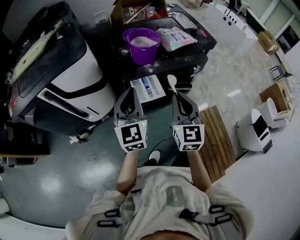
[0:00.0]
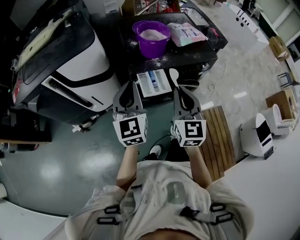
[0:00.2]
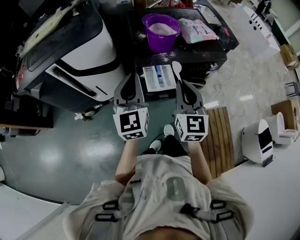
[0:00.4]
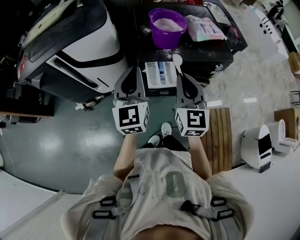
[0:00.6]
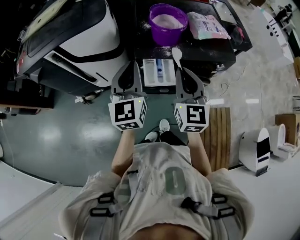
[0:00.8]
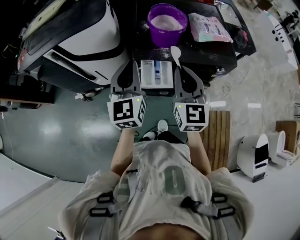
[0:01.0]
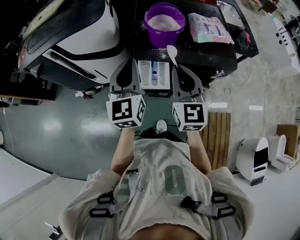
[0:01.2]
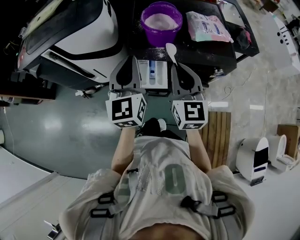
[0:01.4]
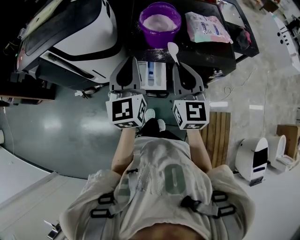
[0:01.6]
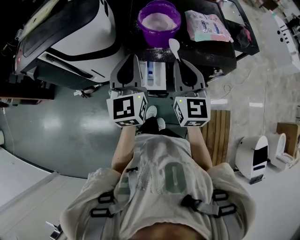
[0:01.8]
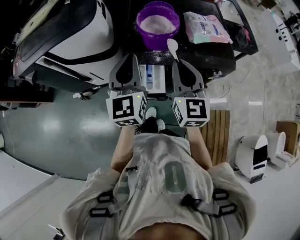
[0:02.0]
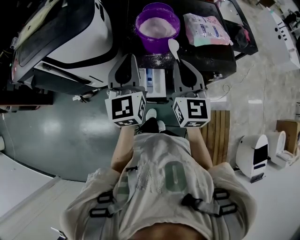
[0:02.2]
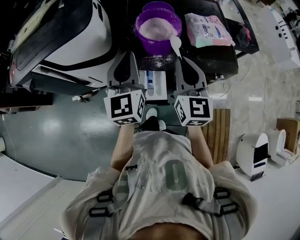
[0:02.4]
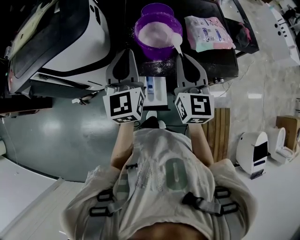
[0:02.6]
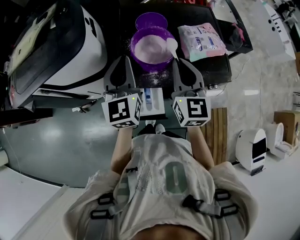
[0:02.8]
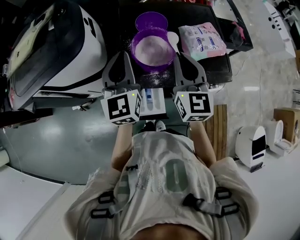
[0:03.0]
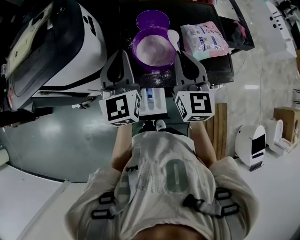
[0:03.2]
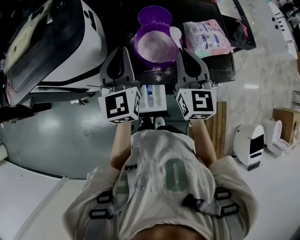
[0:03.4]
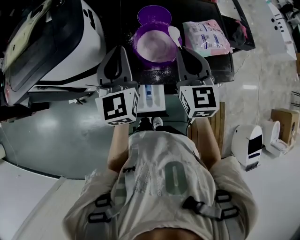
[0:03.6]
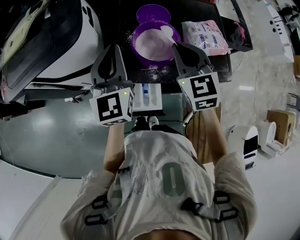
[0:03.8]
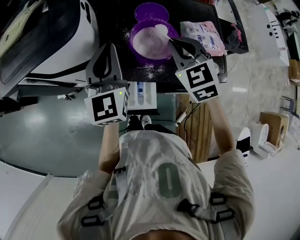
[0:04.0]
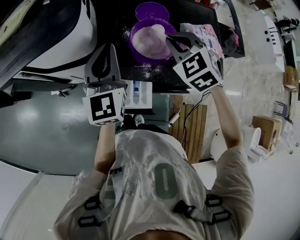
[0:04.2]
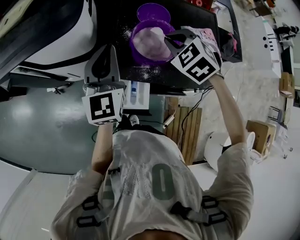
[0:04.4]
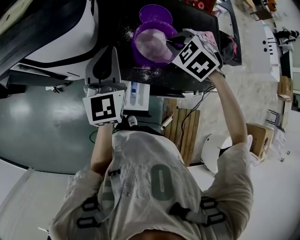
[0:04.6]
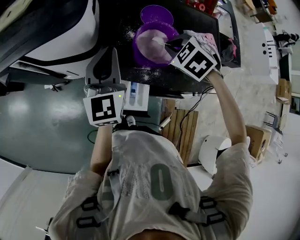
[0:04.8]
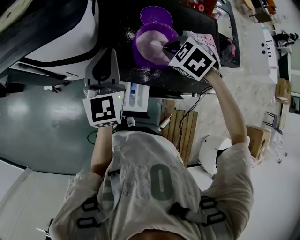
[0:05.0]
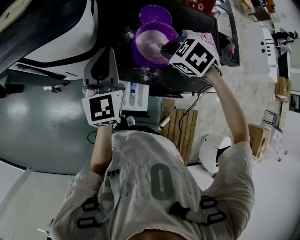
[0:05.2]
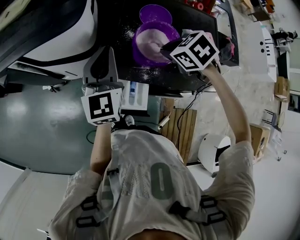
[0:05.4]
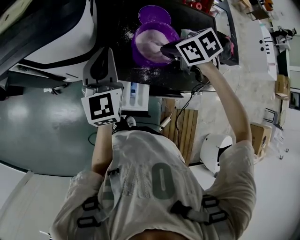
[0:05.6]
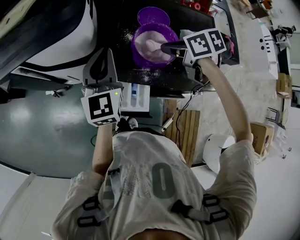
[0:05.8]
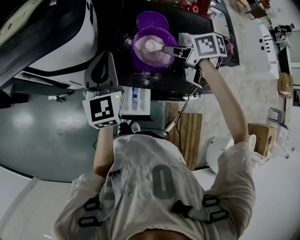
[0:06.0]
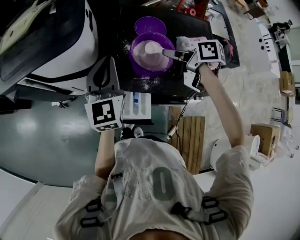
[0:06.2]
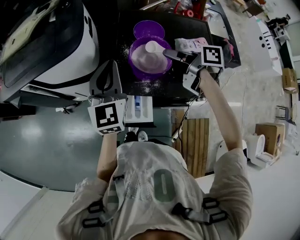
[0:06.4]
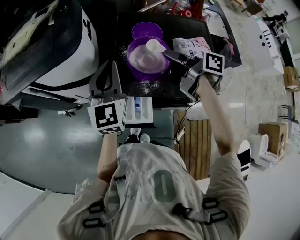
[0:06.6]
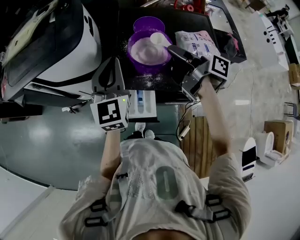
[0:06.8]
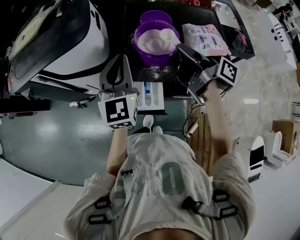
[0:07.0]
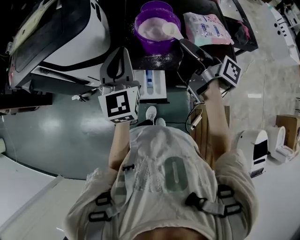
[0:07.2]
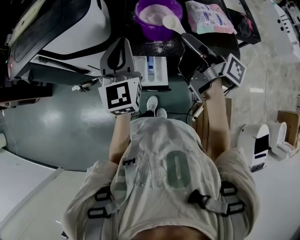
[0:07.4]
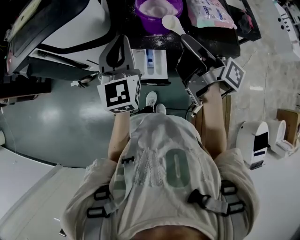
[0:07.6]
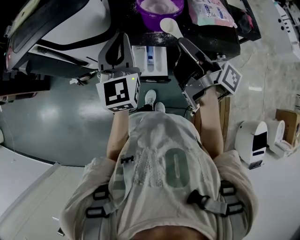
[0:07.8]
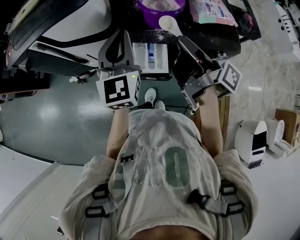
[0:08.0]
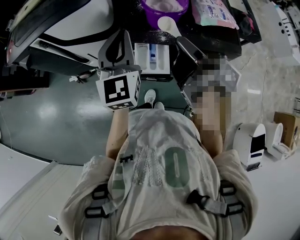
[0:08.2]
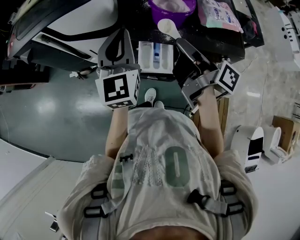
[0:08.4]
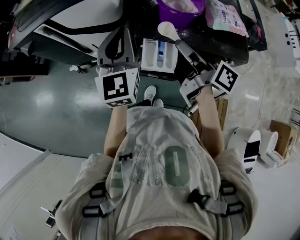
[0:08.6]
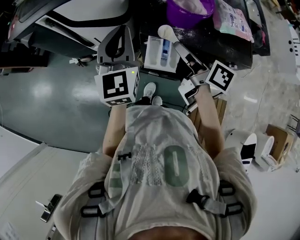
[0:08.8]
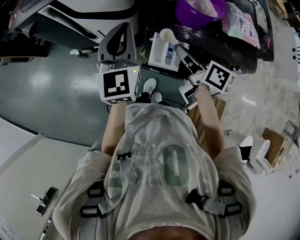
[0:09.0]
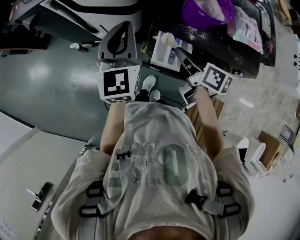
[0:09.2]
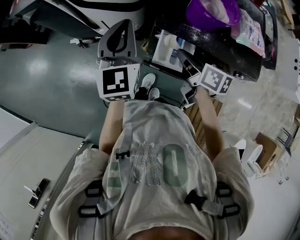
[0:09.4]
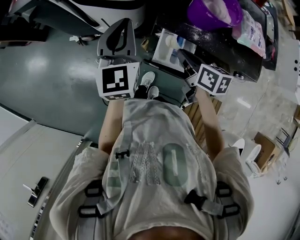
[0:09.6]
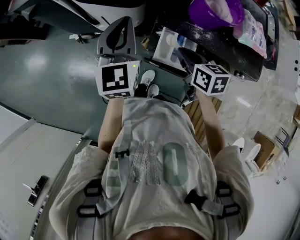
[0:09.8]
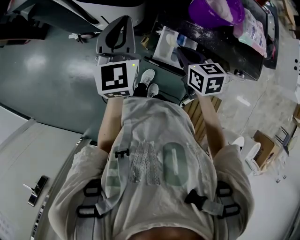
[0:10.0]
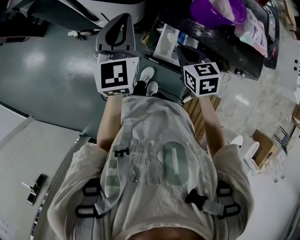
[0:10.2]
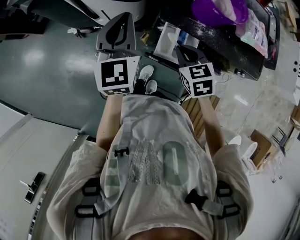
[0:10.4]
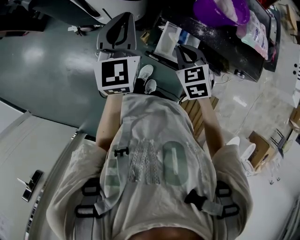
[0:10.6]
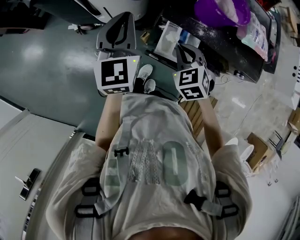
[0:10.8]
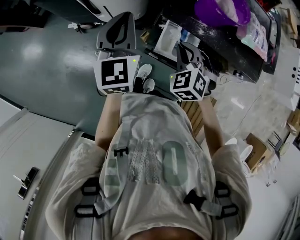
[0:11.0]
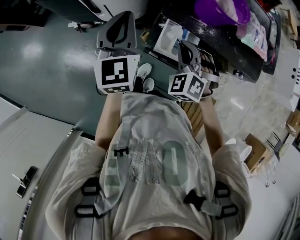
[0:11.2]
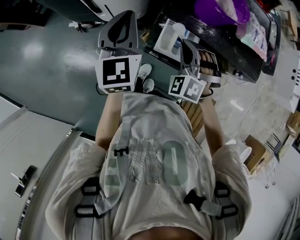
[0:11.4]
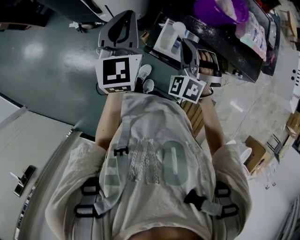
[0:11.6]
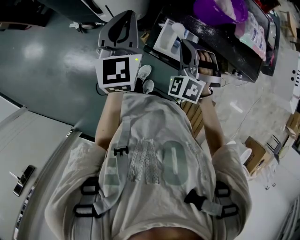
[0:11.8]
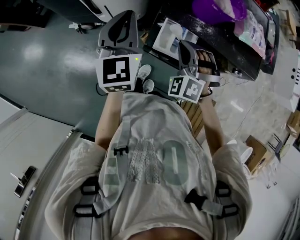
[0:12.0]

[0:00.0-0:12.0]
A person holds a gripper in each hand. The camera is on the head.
0.0 to 1.6 s: The grippers both shift forward and to the right by roughly 10 cm. The right gripper rotates some 20 degrees.
1.6 to 3.0 s: The grippers both shift forward by roughly 15 cm.
3.0 to 4.4 s: The right gripper heads downward and forward, covering about 10 cm, and tips its fingers downward by about 50 degrees.
4.4 to 6.0 s: The right gripper twists about 70 degrees clockwise, seen from behind.
6.0 to 7.6 s: Both grippers travel together backward, roughly 15 cm. The right gripper points its fingers some 50 degrees further upward.
7.6 to 9.0 s: The left gripper shifts about 10 cm to the left; the right gripper travels downward and to the left by roughly 15 cm, and changes its angle by some 40 degrees.
9.0 to 10.4 s: The left gripper shifts by some 5 cm; the right gripper goes roughly 10 cm downward, and rolls counterclockwise, seen from behind, by roughly 60 degrees.
10.4 to 12.0 s: The right gripper rotates around the line of its fingers by approximately 60 degrees, counterclockwise from behind.

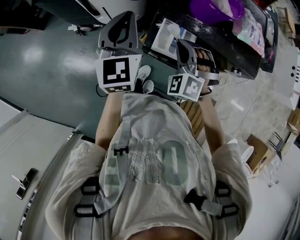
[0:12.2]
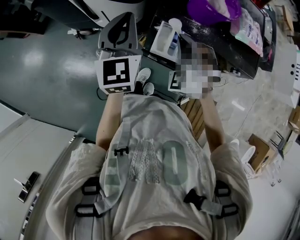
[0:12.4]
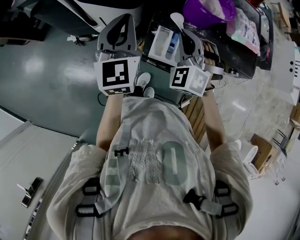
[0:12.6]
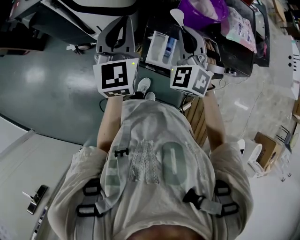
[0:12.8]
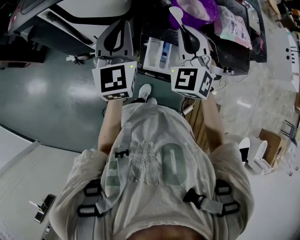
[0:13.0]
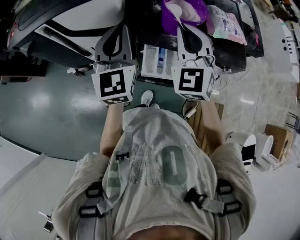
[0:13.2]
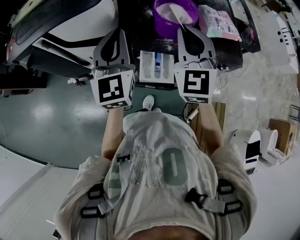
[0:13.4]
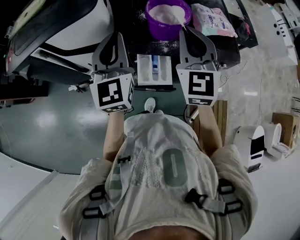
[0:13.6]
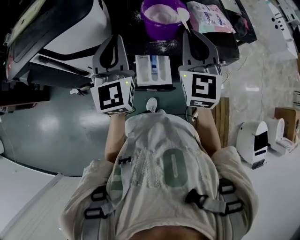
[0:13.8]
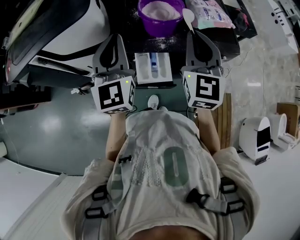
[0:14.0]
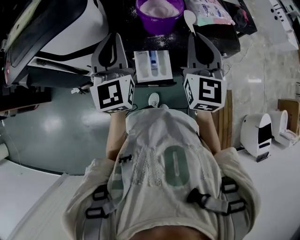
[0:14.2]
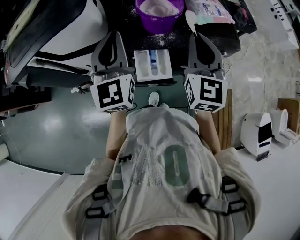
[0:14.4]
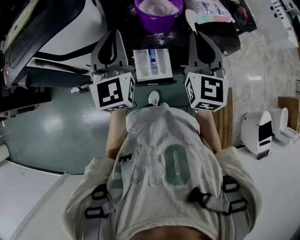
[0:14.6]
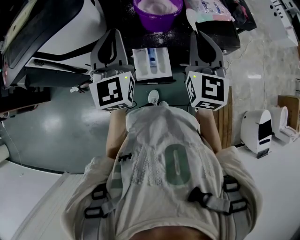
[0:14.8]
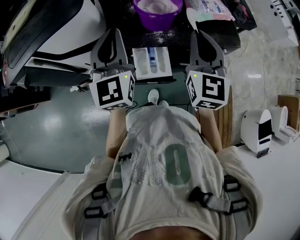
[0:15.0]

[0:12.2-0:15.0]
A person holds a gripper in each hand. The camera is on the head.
12.2 to 13.6 s: The left gripper heads upward and to the right, covering some 10 cm. Meanwhile the right gripper is displaced upward and to the right by roughly 25 cm, and rotates around the line of its fingers by some 50 degrees, clockwise from behind.
13.6 to 15.0 s: The right gripper travels to the right by some 5 cm.

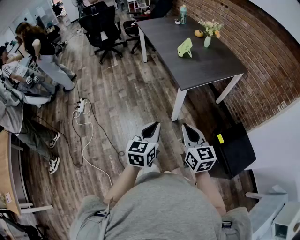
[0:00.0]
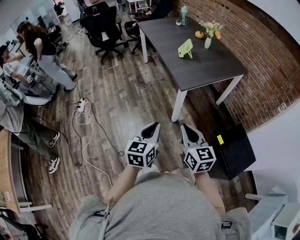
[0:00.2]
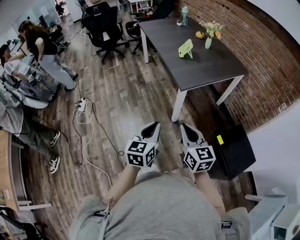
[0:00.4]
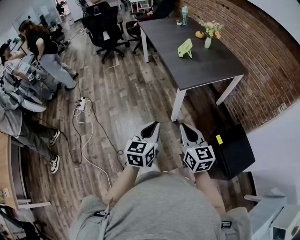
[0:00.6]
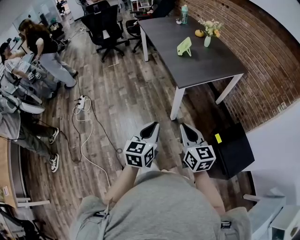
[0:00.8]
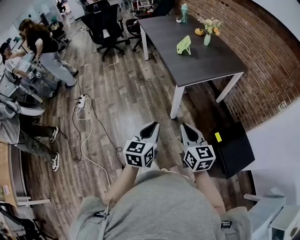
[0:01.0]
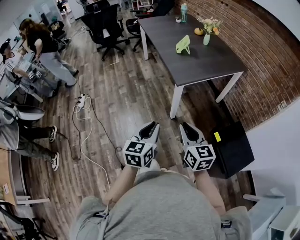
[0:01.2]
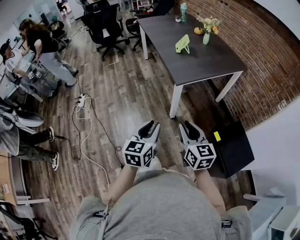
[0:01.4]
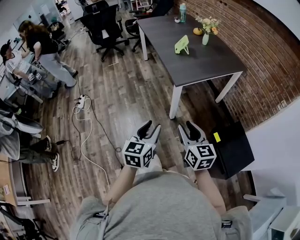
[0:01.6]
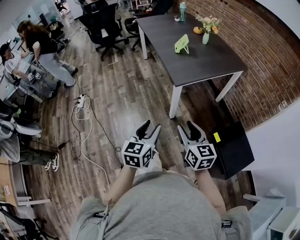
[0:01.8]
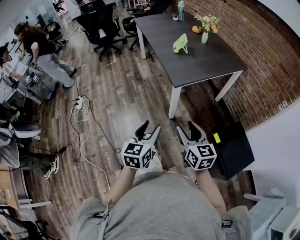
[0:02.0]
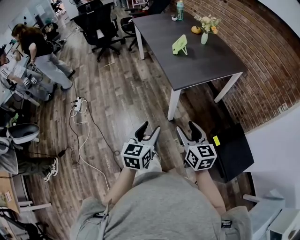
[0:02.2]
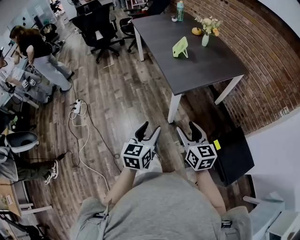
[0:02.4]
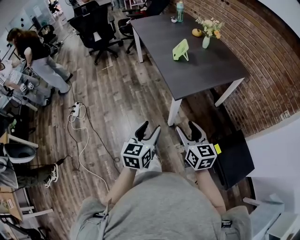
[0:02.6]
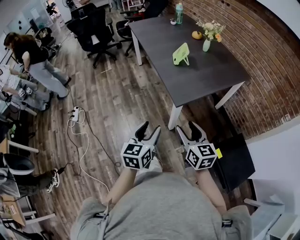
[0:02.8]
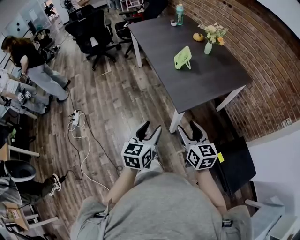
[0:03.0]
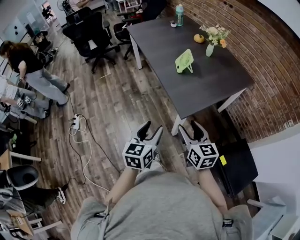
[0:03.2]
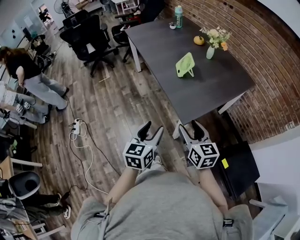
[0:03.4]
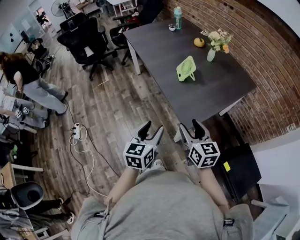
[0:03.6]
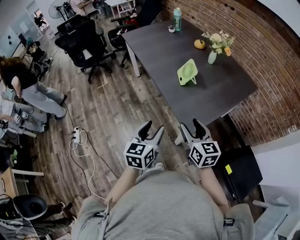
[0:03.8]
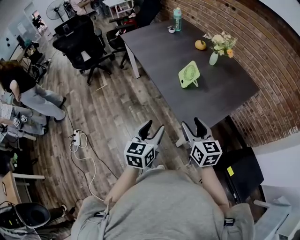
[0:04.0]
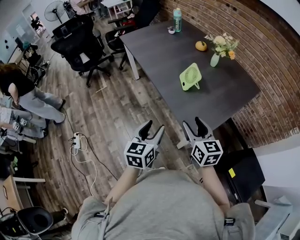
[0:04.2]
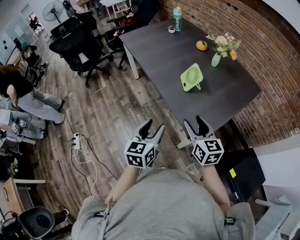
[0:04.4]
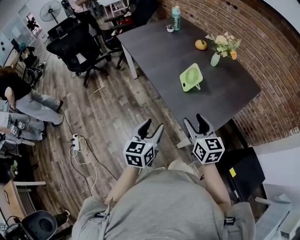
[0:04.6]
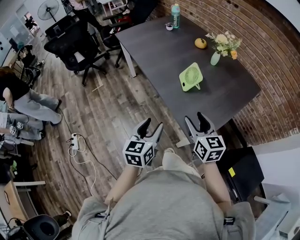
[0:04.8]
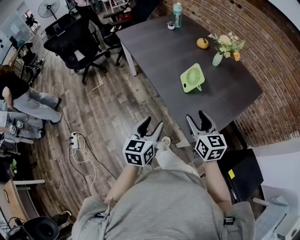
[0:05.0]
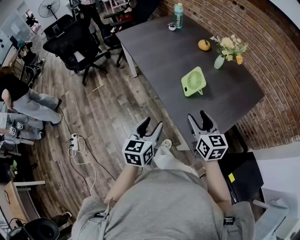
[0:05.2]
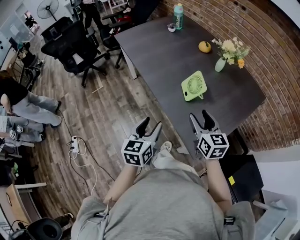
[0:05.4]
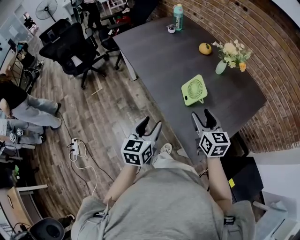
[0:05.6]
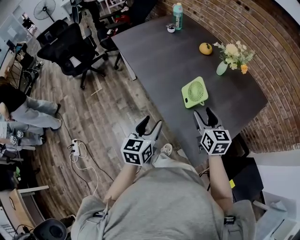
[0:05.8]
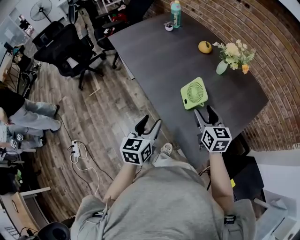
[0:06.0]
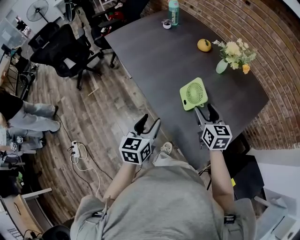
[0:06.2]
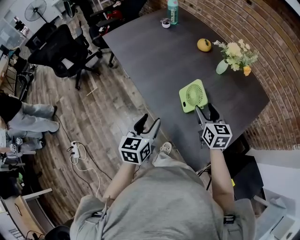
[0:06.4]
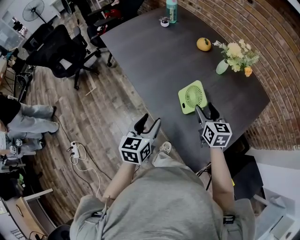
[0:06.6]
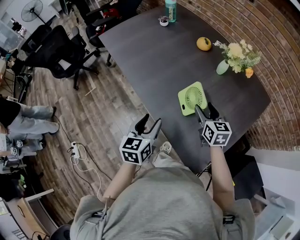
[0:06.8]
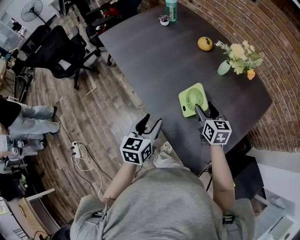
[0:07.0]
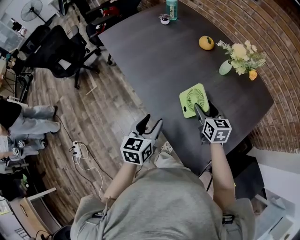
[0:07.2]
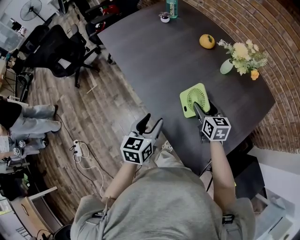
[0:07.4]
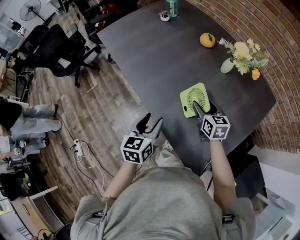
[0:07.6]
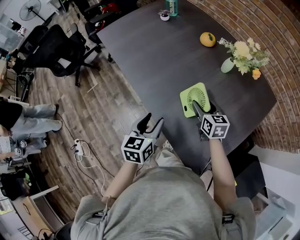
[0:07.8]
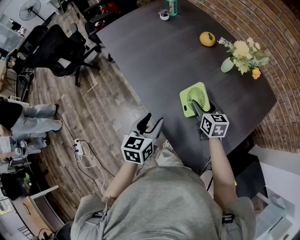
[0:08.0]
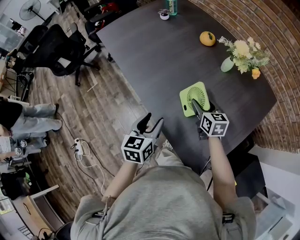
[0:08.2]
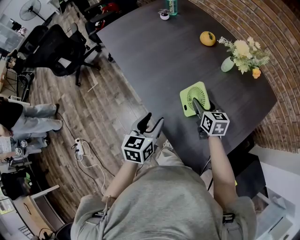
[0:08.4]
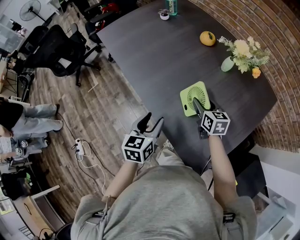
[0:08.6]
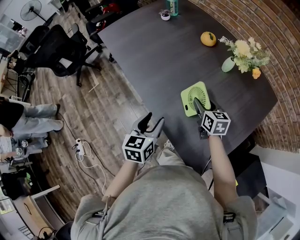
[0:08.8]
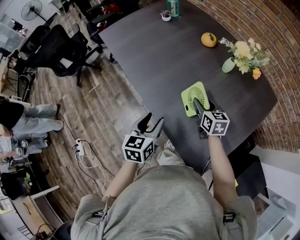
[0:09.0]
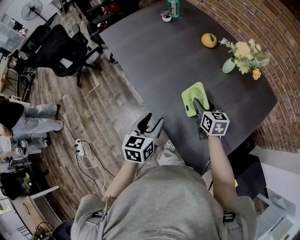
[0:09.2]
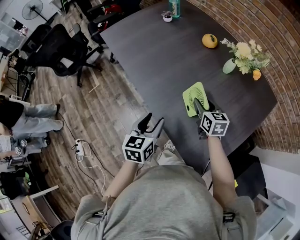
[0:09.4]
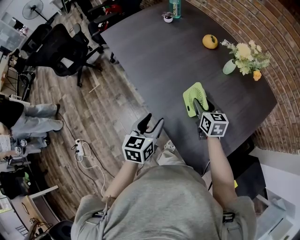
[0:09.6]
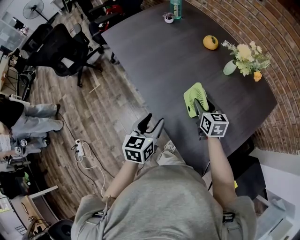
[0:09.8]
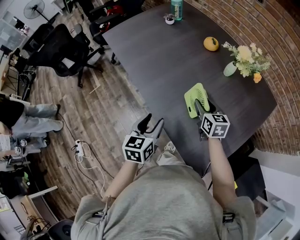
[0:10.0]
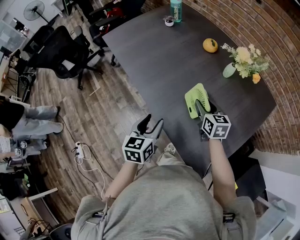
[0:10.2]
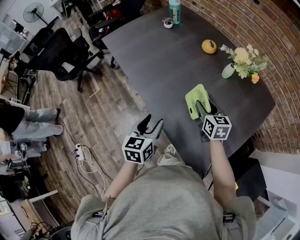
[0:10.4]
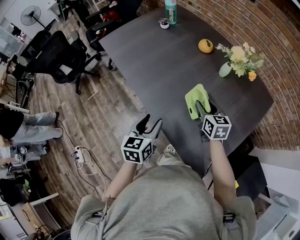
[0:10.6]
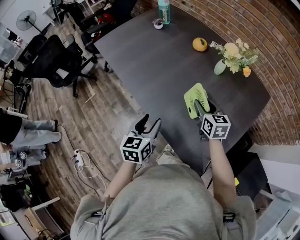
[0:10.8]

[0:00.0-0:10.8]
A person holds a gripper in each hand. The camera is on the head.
0.0 to 1.6 s: The left gripper changes place by approximately 5 cm, and opens. Meanwhile the right gripper shifts some 5 cm to the right, and opens up.
1.6 to 3.0 s: Both grippers travel together forward, about 25 cm.
3.0 to 4.6 s: Both grippers travel together forward, some 25 cm.
4.6 to 6.2 s: Both grippers travel together forward, about 20 cm.
6.2 to 7.8 s: The right gripper goes approximately 15 cm forward and downward; the left gripper heads forward, covering some 10 cm.
7.8 to 9.2 s: Both grippers stay about where they are.
9.2 to 10.8 s: The right gripper moves approximately 5 cm.
